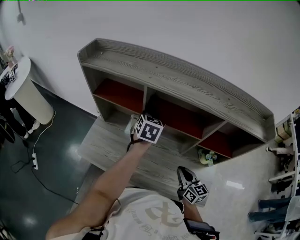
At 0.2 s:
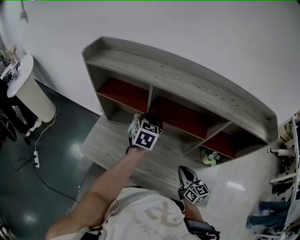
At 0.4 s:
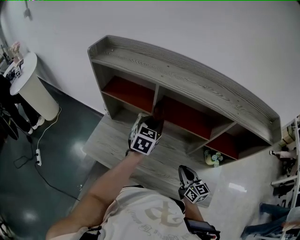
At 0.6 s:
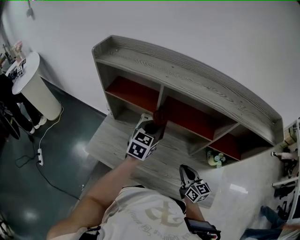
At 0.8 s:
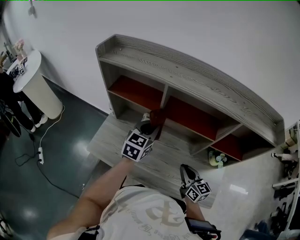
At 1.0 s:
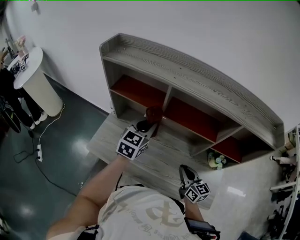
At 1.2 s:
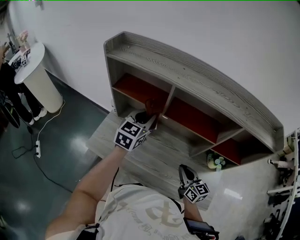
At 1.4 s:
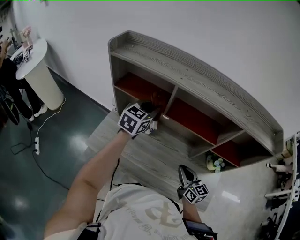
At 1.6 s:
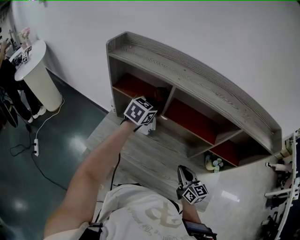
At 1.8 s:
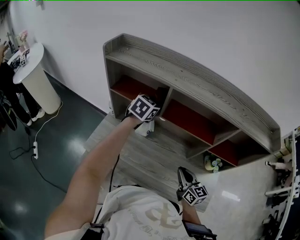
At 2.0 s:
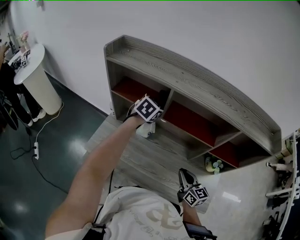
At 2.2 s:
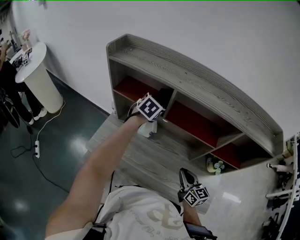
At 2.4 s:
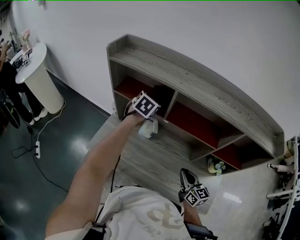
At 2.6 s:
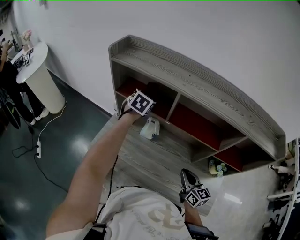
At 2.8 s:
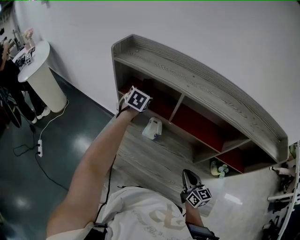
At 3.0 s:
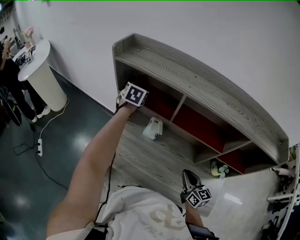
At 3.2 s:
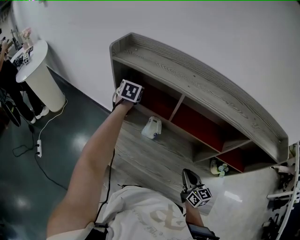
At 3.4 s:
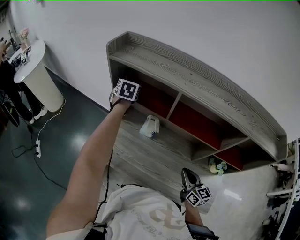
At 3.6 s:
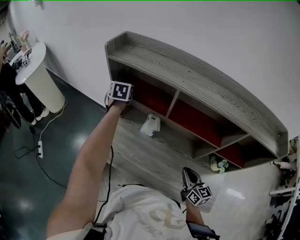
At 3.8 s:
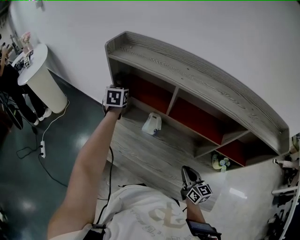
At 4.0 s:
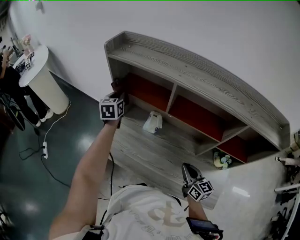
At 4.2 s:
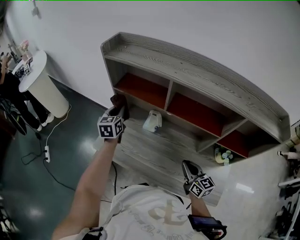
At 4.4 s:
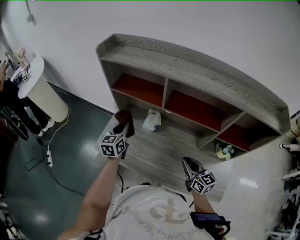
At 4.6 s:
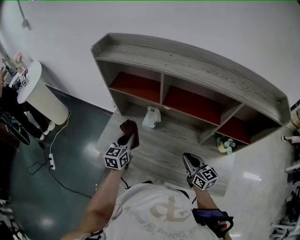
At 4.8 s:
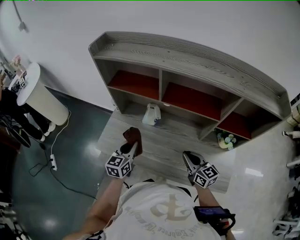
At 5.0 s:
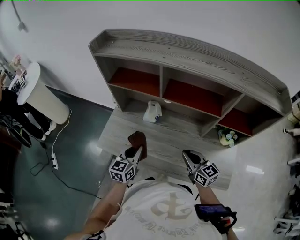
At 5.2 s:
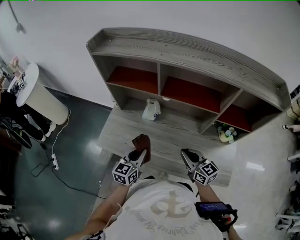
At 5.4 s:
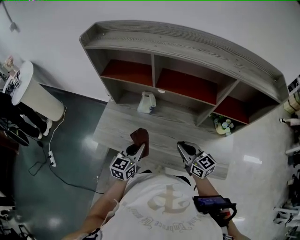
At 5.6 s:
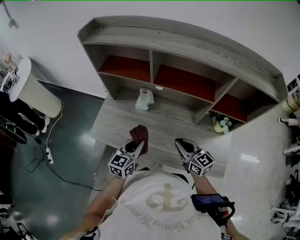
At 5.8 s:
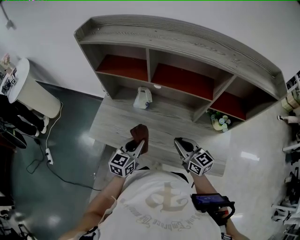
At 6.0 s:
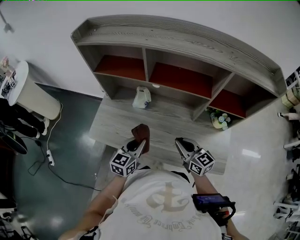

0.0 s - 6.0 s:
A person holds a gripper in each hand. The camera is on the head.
0.0 s - 1.6 s: The right gripper is displaced to the left by about 5 cm. The left gripper moves to the left, some 10 cm.
1.6 s - 3.0 s: The left gripper goes some 20 cm to the left and forward, and changes its angle by roughly 30 degrees.
3.0 s - 4.4 s: The left gripper travels backward by approximately 20 cm, and changes its angle by about 20 degrees.
4.4 s - 6.0 s: The left gripper travels backward and to the right by roughly 20 cm, and rotates about 20 degrees.

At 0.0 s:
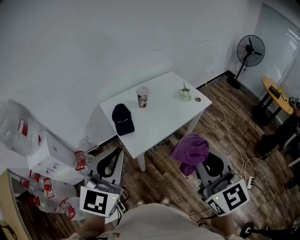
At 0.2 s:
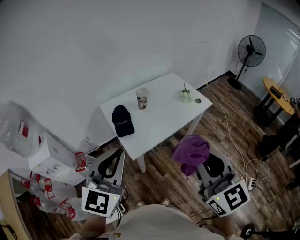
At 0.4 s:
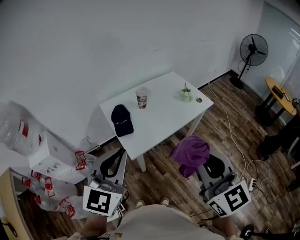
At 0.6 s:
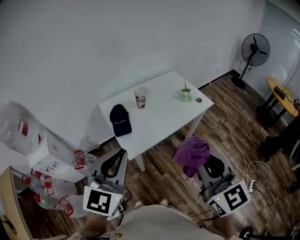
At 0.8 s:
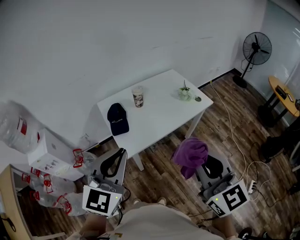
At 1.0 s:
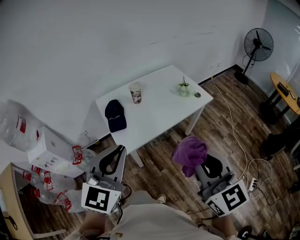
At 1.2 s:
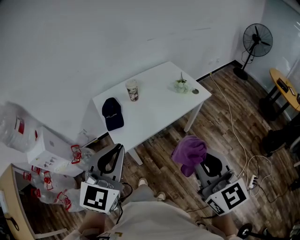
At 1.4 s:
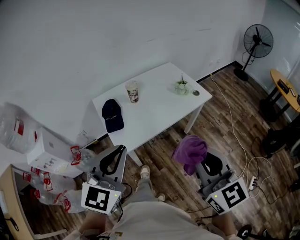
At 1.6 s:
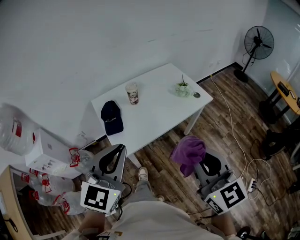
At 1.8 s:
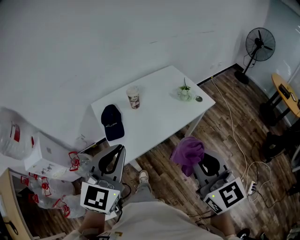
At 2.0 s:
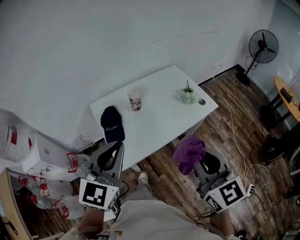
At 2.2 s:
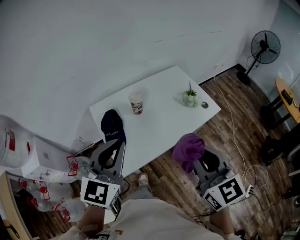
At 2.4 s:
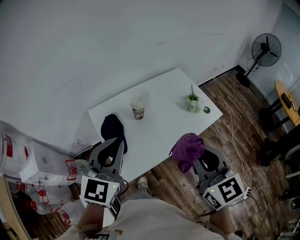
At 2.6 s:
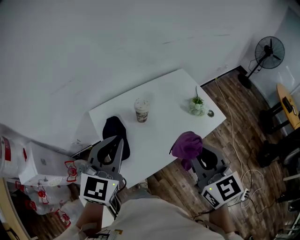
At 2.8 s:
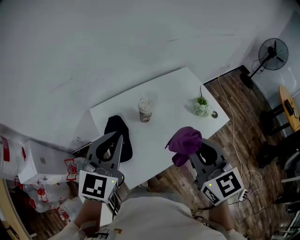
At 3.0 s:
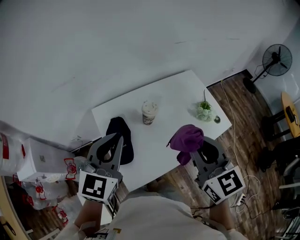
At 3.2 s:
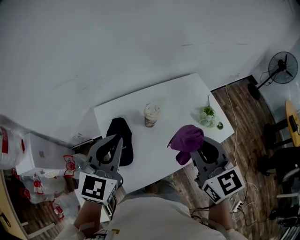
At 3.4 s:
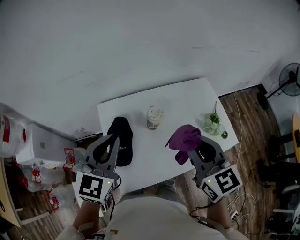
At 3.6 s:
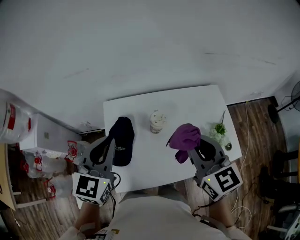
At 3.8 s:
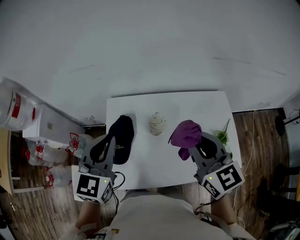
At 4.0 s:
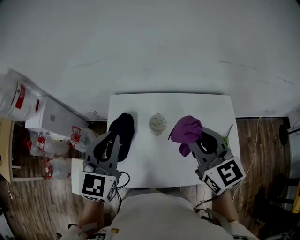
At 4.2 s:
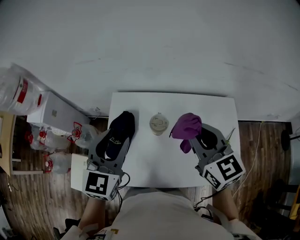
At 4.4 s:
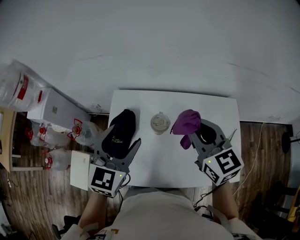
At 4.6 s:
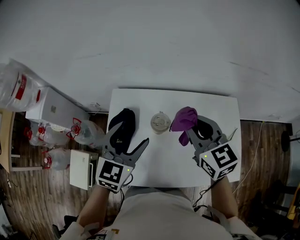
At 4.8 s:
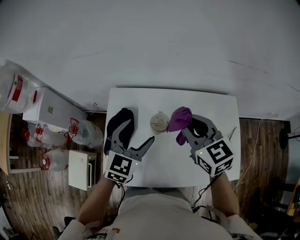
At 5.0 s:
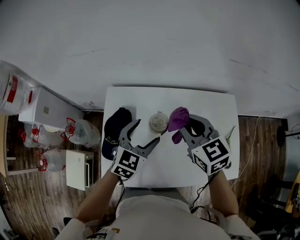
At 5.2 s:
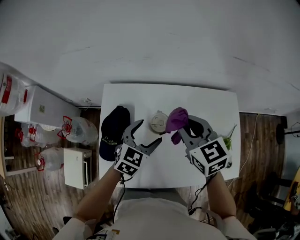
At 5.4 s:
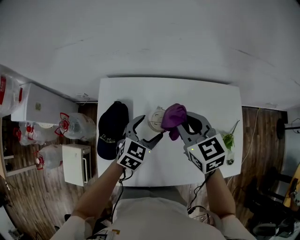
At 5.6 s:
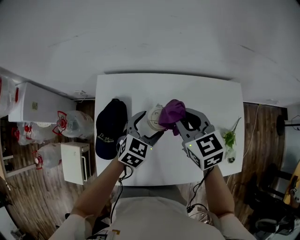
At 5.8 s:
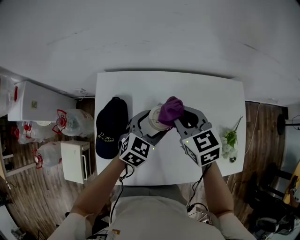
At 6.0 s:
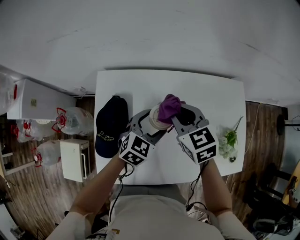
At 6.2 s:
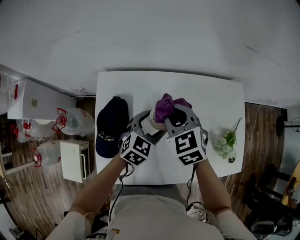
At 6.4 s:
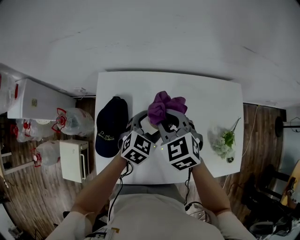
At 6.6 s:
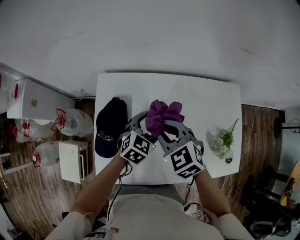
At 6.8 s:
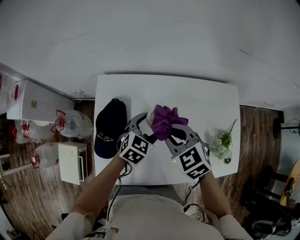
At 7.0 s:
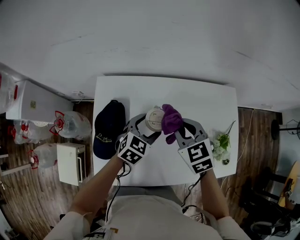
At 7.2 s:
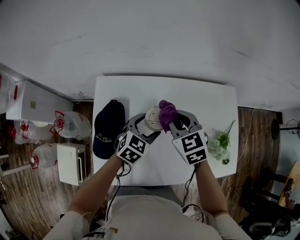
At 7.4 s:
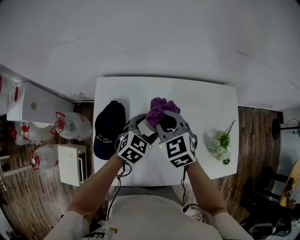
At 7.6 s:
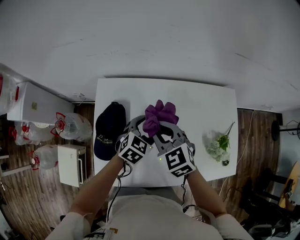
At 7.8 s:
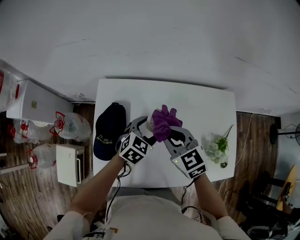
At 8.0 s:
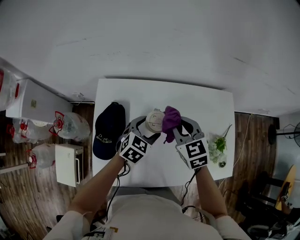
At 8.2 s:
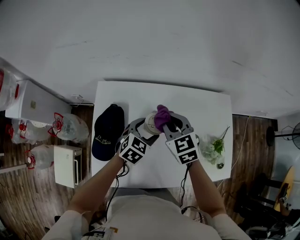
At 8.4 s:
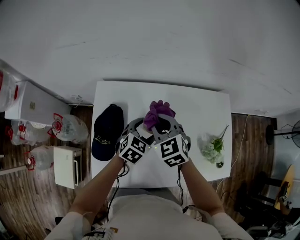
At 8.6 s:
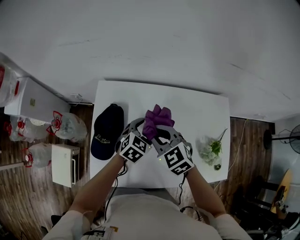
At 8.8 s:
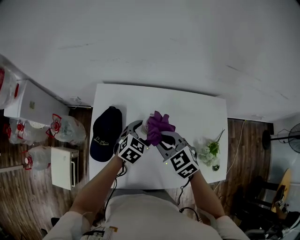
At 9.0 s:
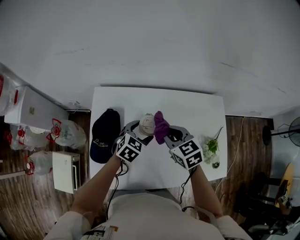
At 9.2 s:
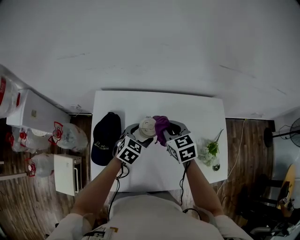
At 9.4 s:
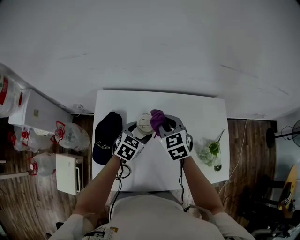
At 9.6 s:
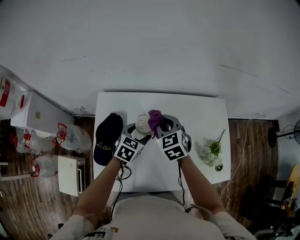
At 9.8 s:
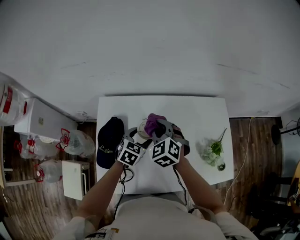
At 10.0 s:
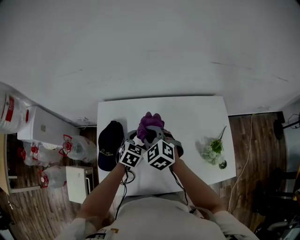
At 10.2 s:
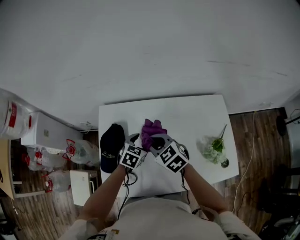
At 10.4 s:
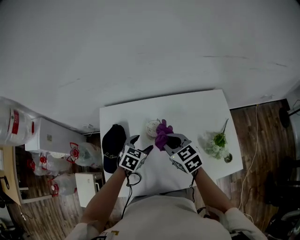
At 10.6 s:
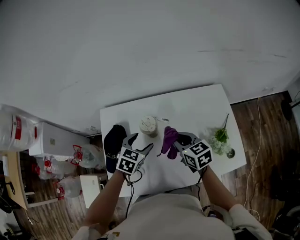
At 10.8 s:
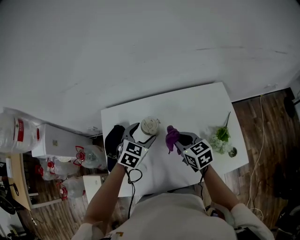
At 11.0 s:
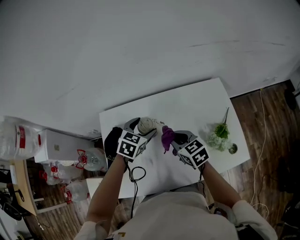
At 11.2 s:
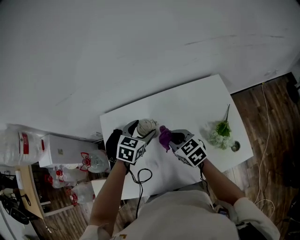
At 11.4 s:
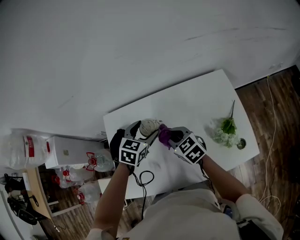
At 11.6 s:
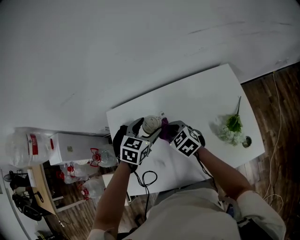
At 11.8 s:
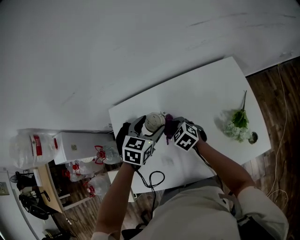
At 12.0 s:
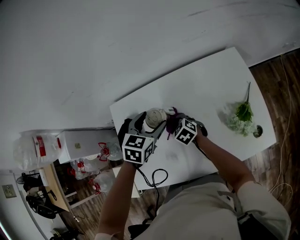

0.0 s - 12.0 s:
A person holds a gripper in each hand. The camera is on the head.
0.0 s - 1.6 s: The right gripper travels to the right, forward and downward by approximately 15 cm. The left gripper moves to the right and forward, some 15 cm.
1.6 s - 3.0 s: The left gripper travels forward and to the left by about 35 cm. Meanwhile the right gripper travels forward by approximately 35 cm.
3.0 s - 4.4 s: The right gripper moves some 25 cm, and swivels roughly 30 degrees; the left gripper moves approximately 15 cm, swivels approximately 30 degrees, and opens.
4.4 s - 6.0 s: The right gripper moves downward and forward, roughly 20 cm. Meanwhile the left gripper travels downward and to the right by some 25 cm, and changes its angle by about 30 degrees.
6.0 s - 7.6 s: The right gripper swings left and right, approximately 10 cm each way, with 2 reversals.
7.6 s - 9.0 s: The right gripper goes about 10 cm to the right, and travels forward and back again, about 5 cm each way.
9.0 s - 10.4 s: The right gripper reaches some 10 cm to the left, then returns.
10.4 s - 12.0 s: The left gripper travels upward and forward by some 10 cm. The right gripper goes roughly 20 cm downward.

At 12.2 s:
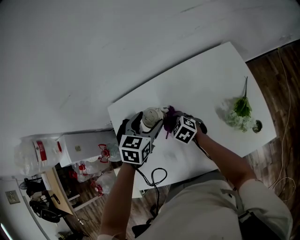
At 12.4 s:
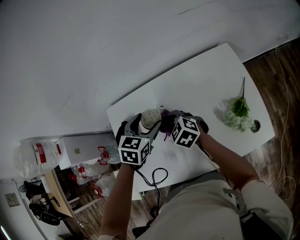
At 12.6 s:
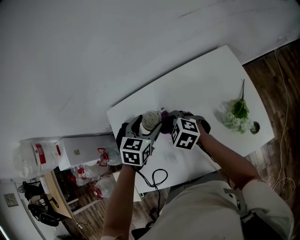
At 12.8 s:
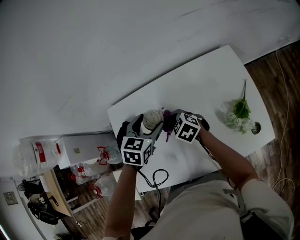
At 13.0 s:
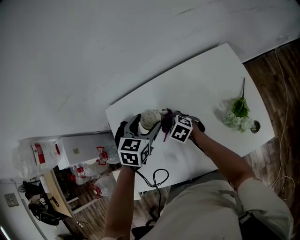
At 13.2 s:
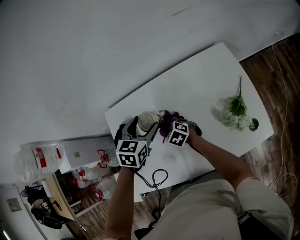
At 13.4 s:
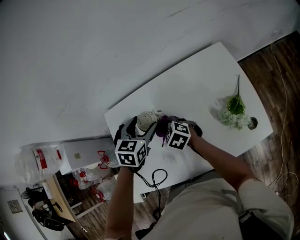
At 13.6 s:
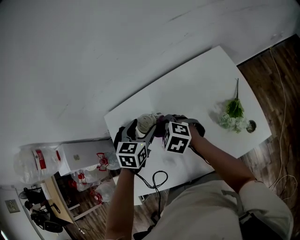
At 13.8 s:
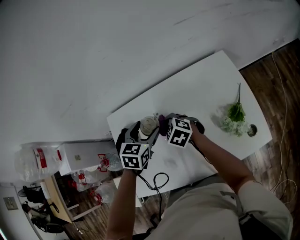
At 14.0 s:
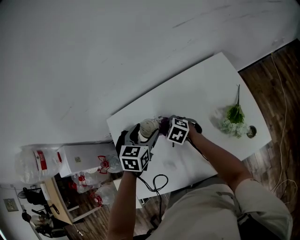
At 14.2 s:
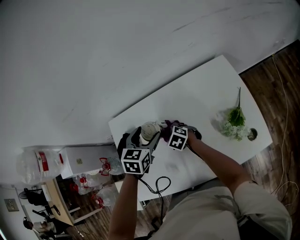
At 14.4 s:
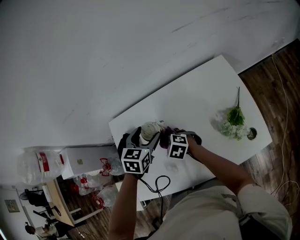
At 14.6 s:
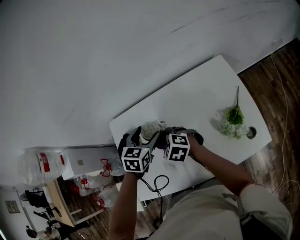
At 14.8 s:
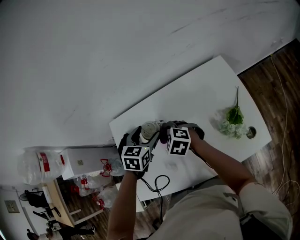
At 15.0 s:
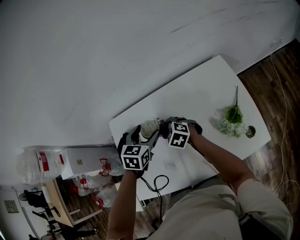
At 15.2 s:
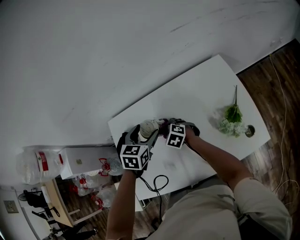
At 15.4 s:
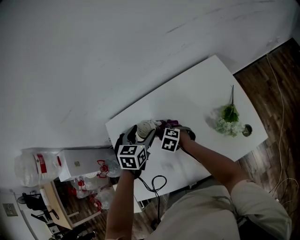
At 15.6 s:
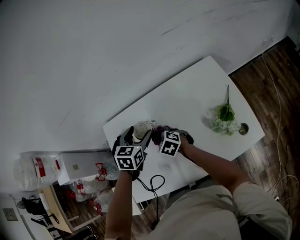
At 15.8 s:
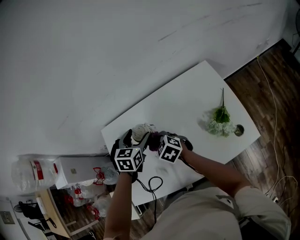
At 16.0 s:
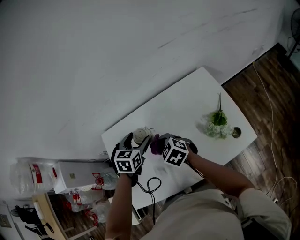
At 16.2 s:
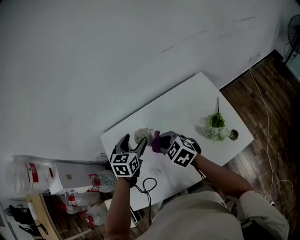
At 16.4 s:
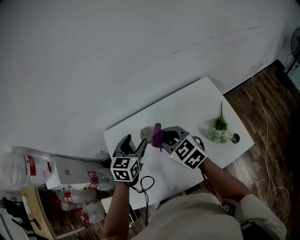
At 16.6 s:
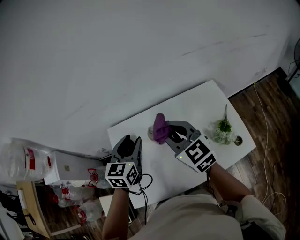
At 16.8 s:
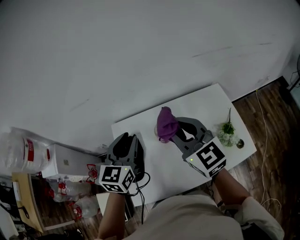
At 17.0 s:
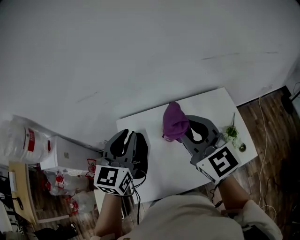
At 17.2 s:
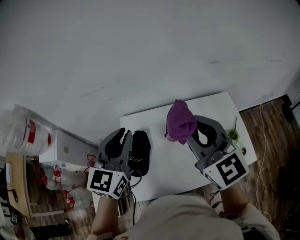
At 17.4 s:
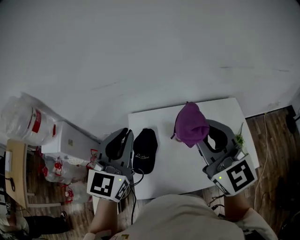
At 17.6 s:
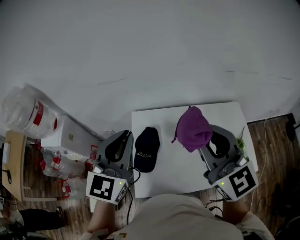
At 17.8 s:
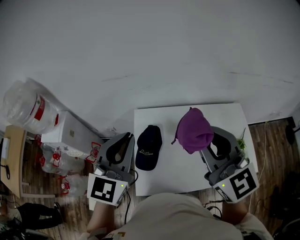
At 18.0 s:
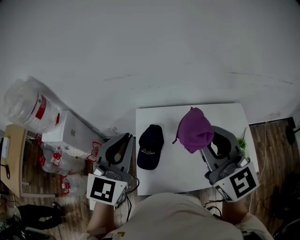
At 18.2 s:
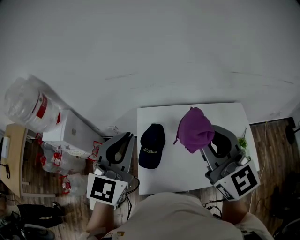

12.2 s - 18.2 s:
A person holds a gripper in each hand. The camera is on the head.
12.2 s - 13.8 s: The right gripper goes up and down, some 10 cm each way, reversing 2 times.
13.8 s - 15.2 s: The right gripper swings up and down, about 10 cm each way, with 2 reversals.
15.2 s - 16.6 s: The left gripper shifts about 15 cm upward and to the left, turns by some 20 degrees, and closes its fingers, while the right gripper goes approximately 35 cm upward, and tips its fingers upward by approximately 40 degrees.
16.6 s - 18.2 s: The right gripper shifts some 25 cm upward, to the left and backward; the left gripper shifts roughly 30 cm to the left, upward and backward, swivels about 20 degrees, and closes up.
